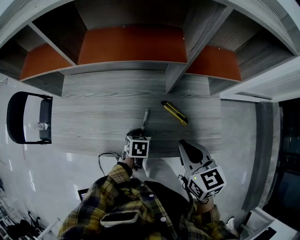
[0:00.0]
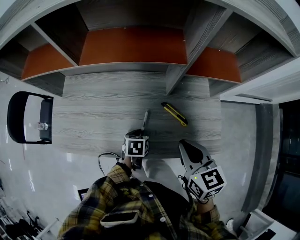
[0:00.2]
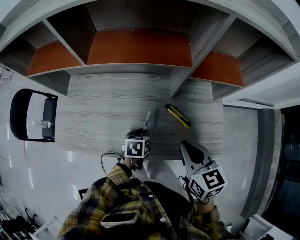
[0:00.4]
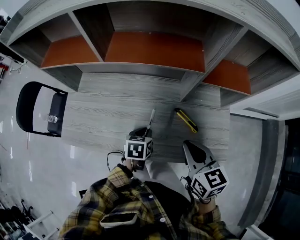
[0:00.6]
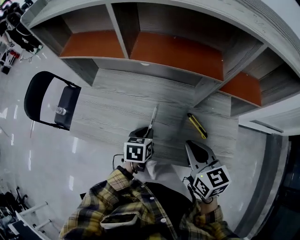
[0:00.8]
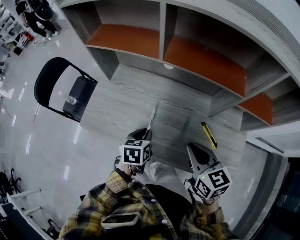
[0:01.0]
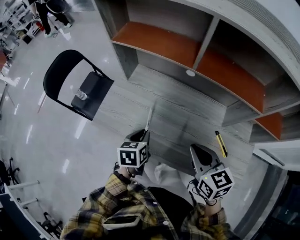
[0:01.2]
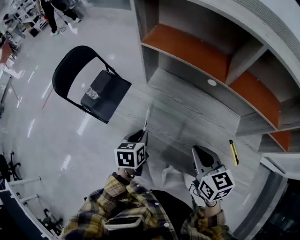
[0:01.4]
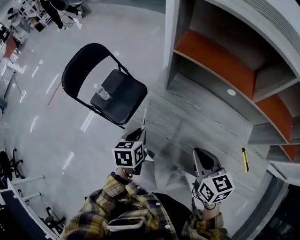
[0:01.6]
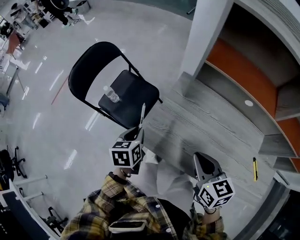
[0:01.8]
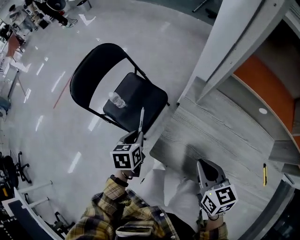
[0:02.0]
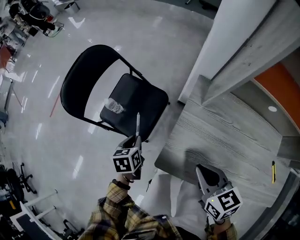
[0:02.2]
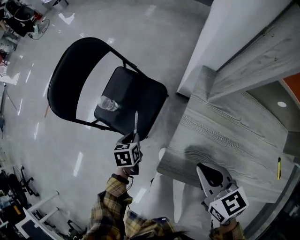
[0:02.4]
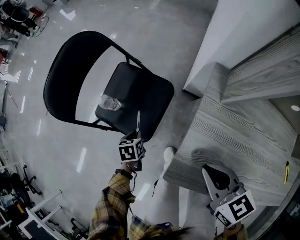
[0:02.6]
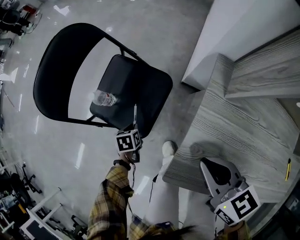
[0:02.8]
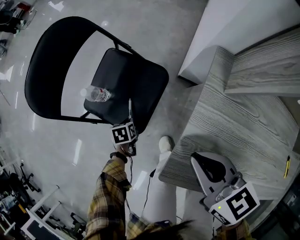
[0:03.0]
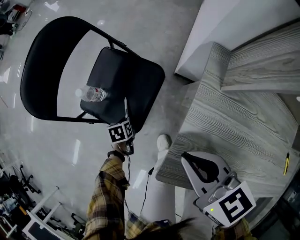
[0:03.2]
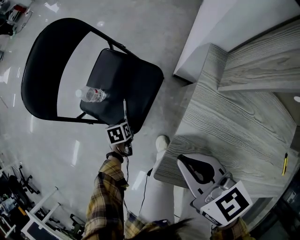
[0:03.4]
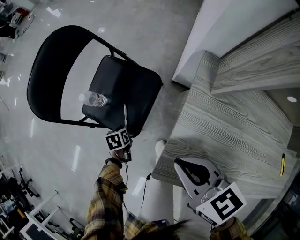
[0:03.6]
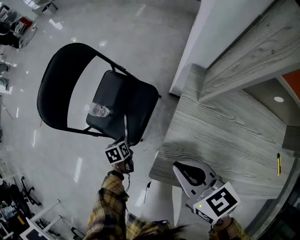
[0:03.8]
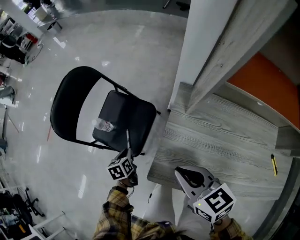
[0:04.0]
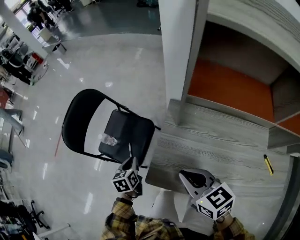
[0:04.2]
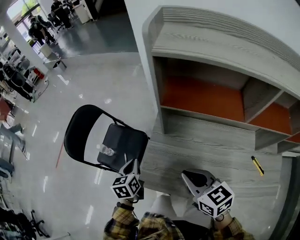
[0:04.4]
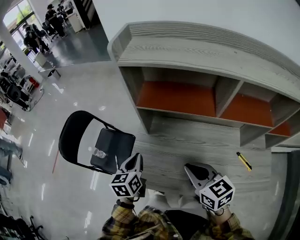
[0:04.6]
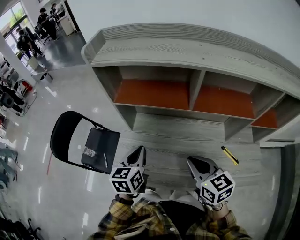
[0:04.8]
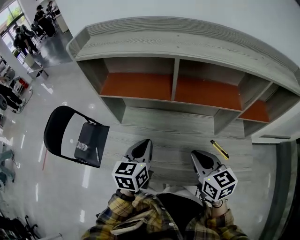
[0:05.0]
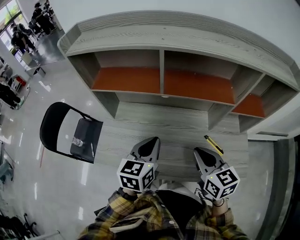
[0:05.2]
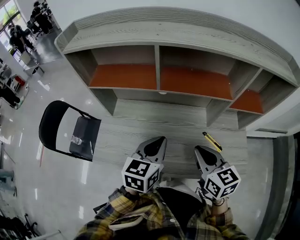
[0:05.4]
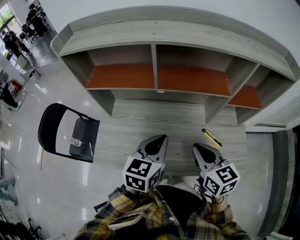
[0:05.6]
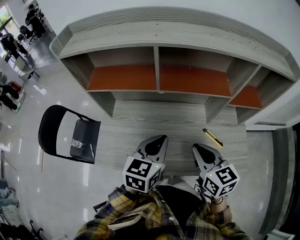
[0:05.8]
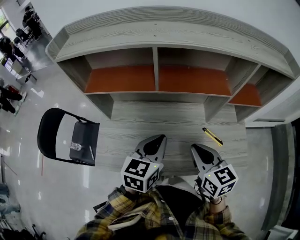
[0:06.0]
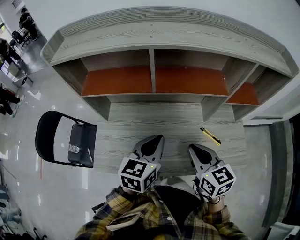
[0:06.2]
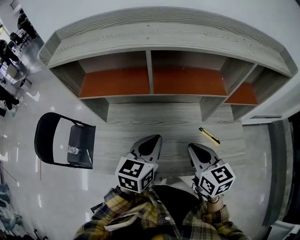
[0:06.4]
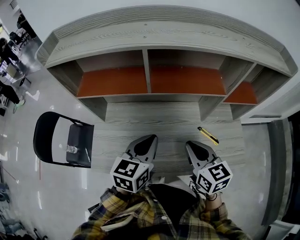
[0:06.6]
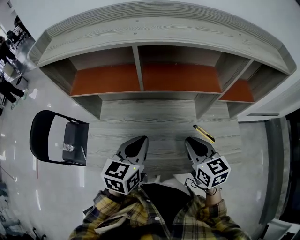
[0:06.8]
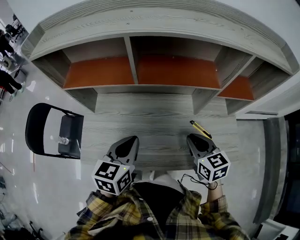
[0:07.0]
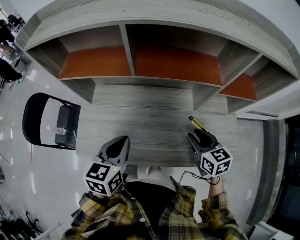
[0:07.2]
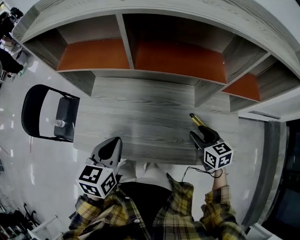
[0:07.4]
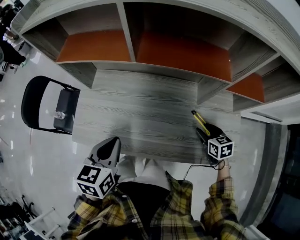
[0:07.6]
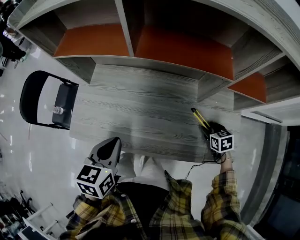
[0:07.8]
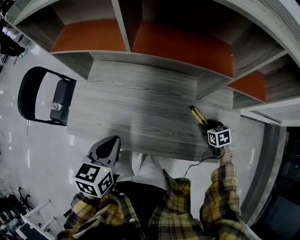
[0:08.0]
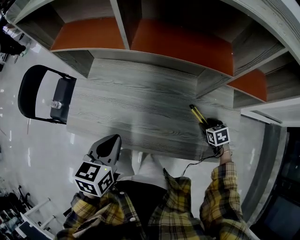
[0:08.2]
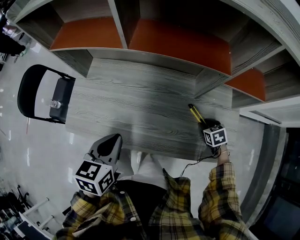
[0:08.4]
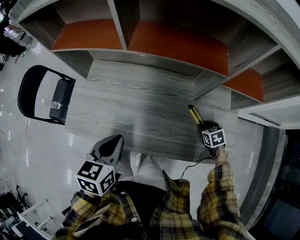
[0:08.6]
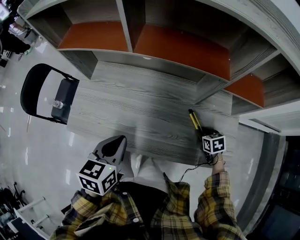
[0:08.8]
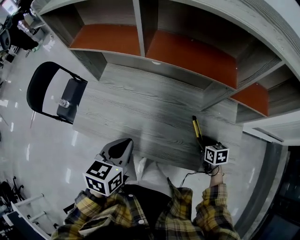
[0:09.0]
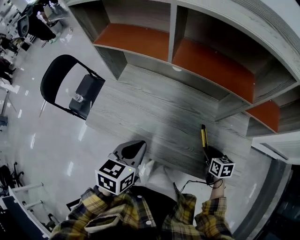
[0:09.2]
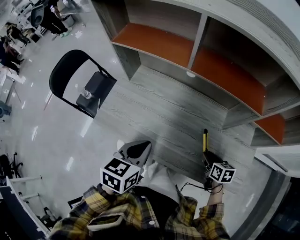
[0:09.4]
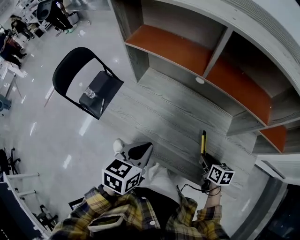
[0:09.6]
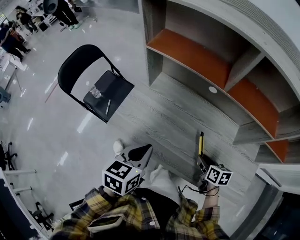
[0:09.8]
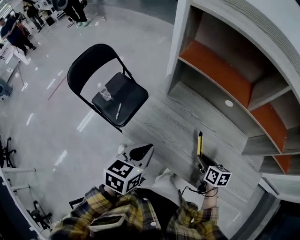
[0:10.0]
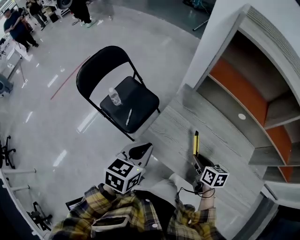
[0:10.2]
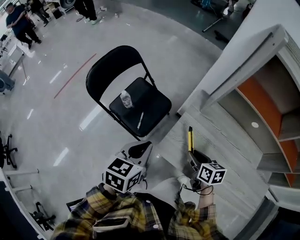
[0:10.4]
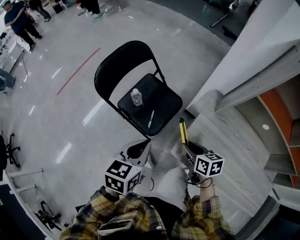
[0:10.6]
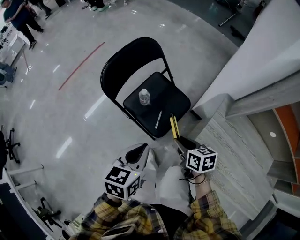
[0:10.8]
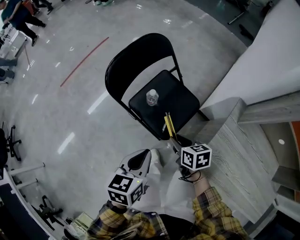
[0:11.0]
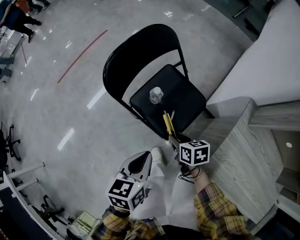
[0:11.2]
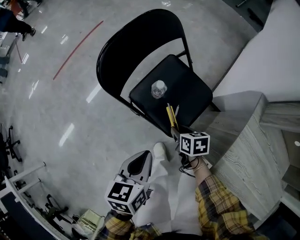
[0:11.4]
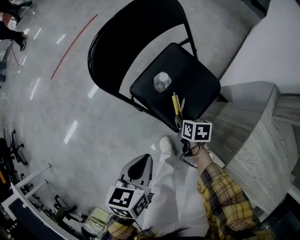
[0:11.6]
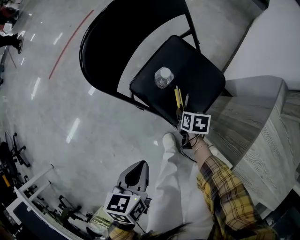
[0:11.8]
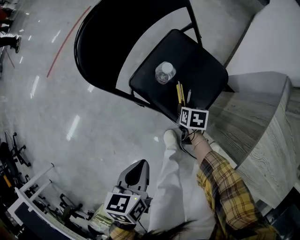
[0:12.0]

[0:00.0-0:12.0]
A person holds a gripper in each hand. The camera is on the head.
0:00.0 to 0:01.6: The right gripper ends up about 40 cm from where it was, and rotates some 30 degrees. Meanwhile the left gripper ends up roughly 50 cm from where it was, and changes its angle by approximately 40 degrees.
0:01.6 to 0:03.0: The left gripper moves downward, to the left and forward, roughly 50 cm, and turns by about 30 degrees, while the right gripper moves forward, to the left and downward, about 35 cm.
0:03.0 to 0:04.4: The left gripper shifts about 50 cm upward and to the right, and tilts its fingers roughly 30 degrees upward, while the right gripper heads upward, backward and to the right, covering about 25 cm.
0:04.4 to 0:06.0: The left gripper shifts by about 50 cm, and turns by some 40 degrees; the right gripper changes place by approximately 30 cm, and changes its angle by approximately 30 degrees.
0:06.0 to 0:07.6: The left gripper goes roughly 10 cm downward, backward and to the left, and changes its angle by approximately 20 degrees; the right gripper goes roughly 30 cm downward and to the right, rotates roughly 30 degrees, and opens up.
0:07.6 to 0:09.0: The left gripper is displaced to the right by roughly 5 cm. Meanwhile the right gripper goes approximately 5 cm downward.
0:09.0 to 0:10.4: The two grippers travel together, to the left, some 50 cm.
0:10.4 to 0:12.0: The right gripper shifts some 50 cm downward, to the left and forward, and rotates some 20 degrees, while the left gripper heads to the left and downward, covering about 35 cm, and rotates approximately 30 degrees.

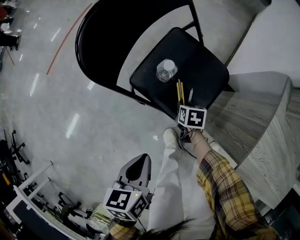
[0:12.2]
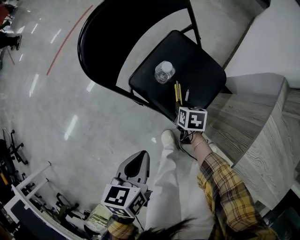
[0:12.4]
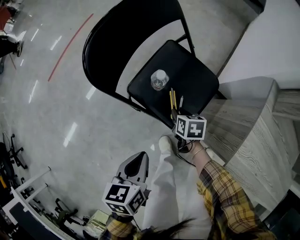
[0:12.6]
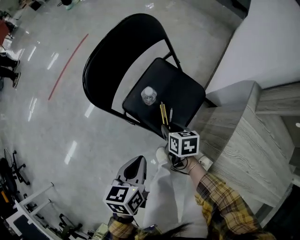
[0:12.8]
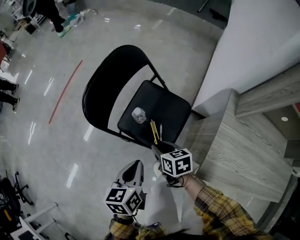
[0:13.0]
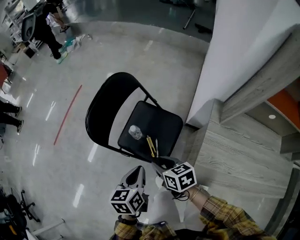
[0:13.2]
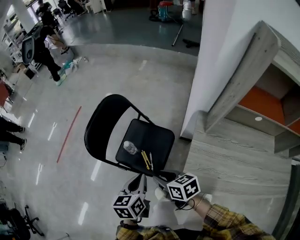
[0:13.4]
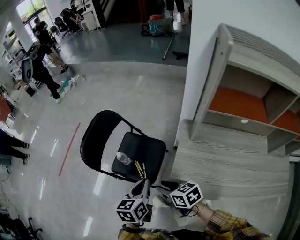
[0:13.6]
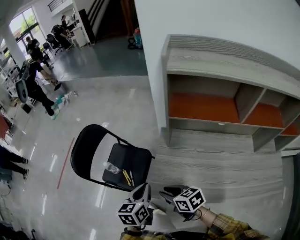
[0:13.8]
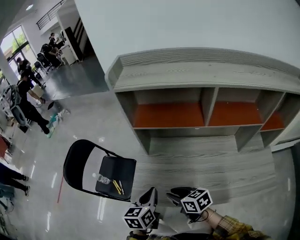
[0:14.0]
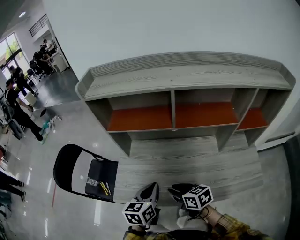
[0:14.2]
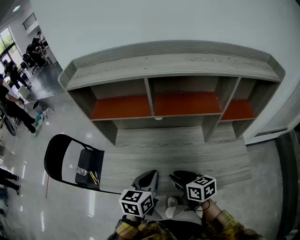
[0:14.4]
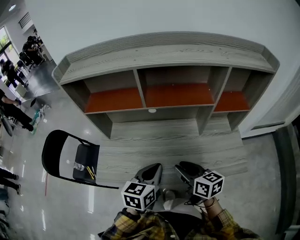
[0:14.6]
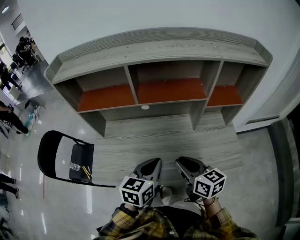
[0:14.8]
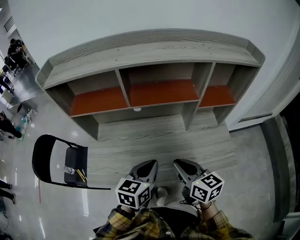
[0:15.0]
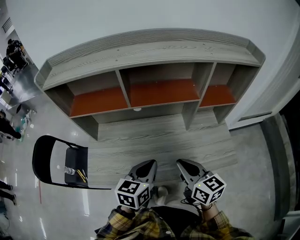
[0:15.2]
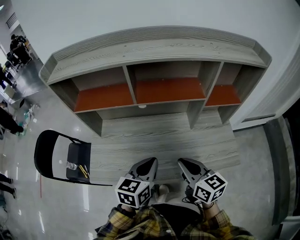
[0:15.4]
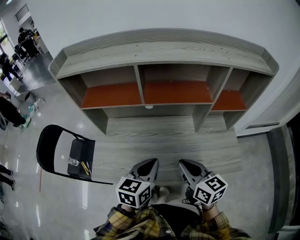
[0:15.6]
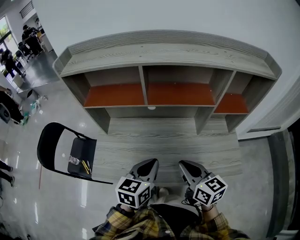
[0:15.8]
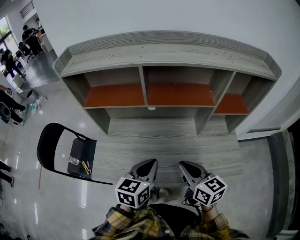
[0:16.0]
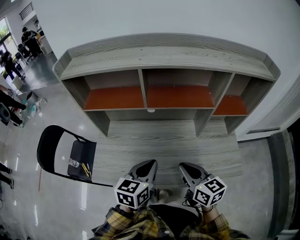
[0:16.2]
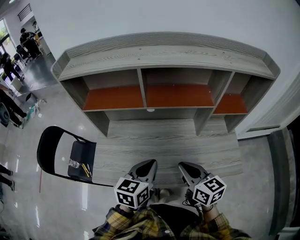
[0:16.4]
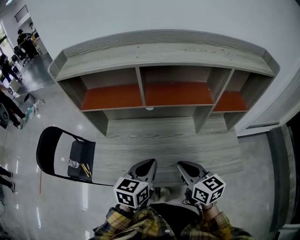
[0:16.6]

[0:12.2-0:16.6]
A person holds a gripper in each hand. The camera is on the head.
0:12.2 to 0:13.6: The right gripper moves upward, roughly 40 cm, and tilts its fingers about 30 degrees upward, while the left gripper is displaced upward and to the right by about 35 cm, and changes its angle by some 30 degrees.
0:13.6 to 0:15.2: The two grippers travel together, some 60 cm. The right gripper turns by some 50 degrees, and closes, while the left gripper changes its angle by roughly 40 degrees.
0:15.2 to 0:16.6: The grippers make only small movements.

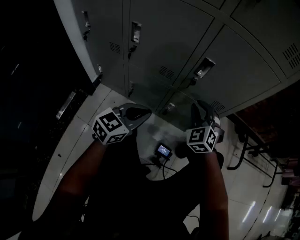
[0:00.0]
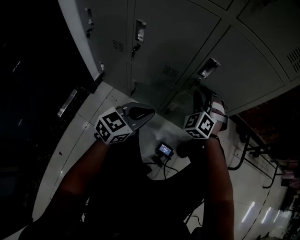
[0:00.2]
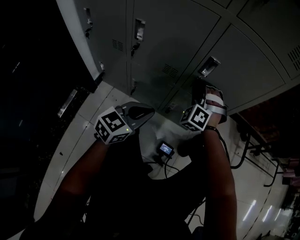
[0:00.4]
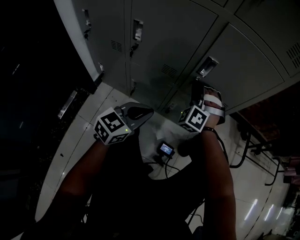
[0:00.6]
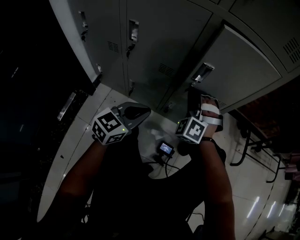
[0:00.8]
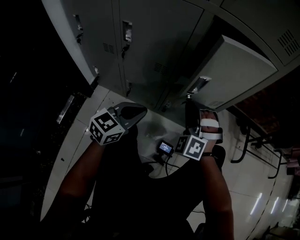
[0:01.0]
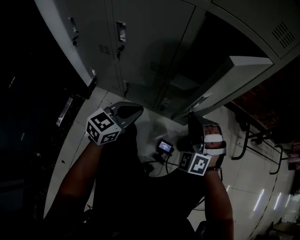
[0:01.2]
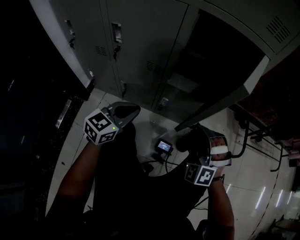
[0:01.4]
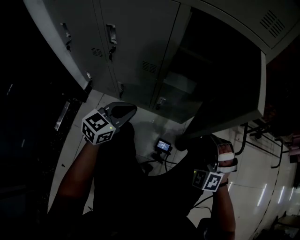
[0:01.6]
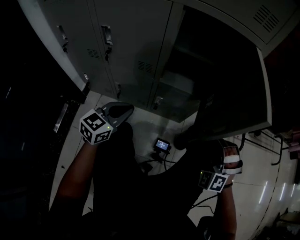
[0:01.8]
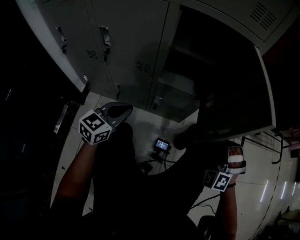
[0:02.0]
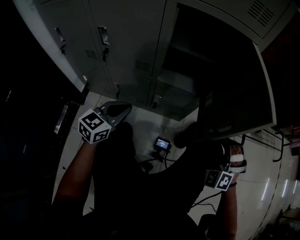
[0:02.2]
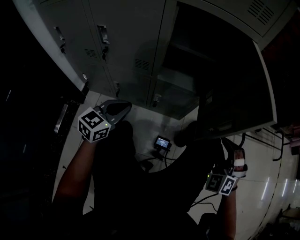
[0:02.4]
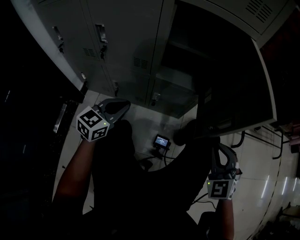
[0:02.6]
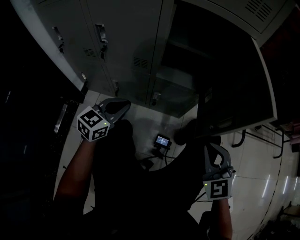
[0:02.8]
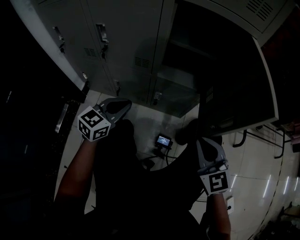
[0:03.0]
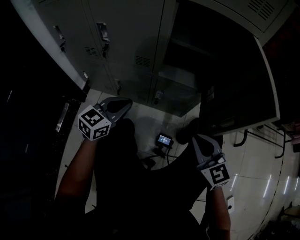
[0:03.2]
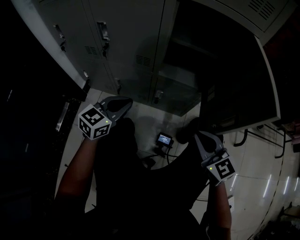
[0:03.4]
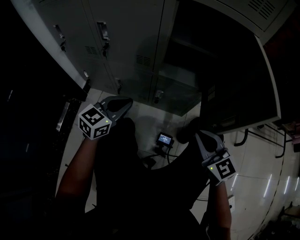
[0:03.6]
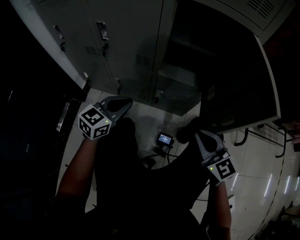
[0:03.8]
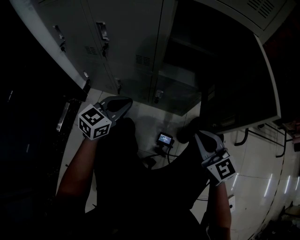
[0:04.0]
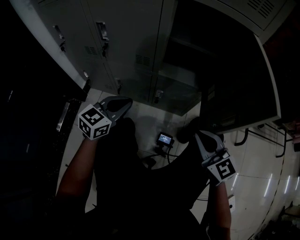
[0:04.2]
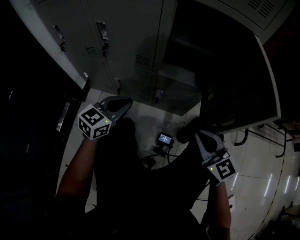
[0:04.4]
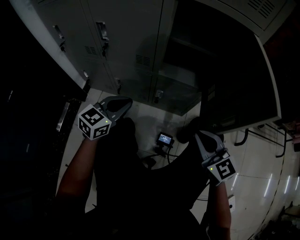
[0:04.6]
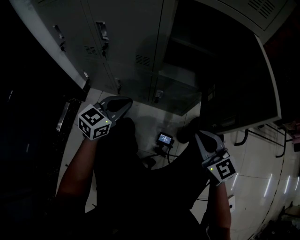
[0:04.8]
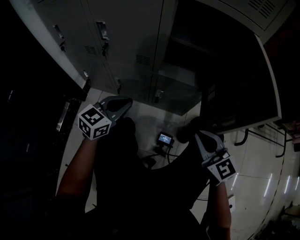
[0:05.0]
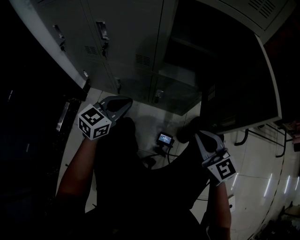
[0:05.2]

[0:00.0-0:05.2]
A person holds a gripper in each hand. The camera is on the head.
0:00.0 to 0:01.8: The right gripper is displaced to the right and backward by about 25 cm, and turns by about 30 degrees.
0:01.8 to 0:03.4: The right gripper heads to the left, covering some 5 cm, and rotates around the line of its fingers by about 70 degrees, clockwise from behind.
0:03.4 to 0:05.2: Both grippers stay about where they are.

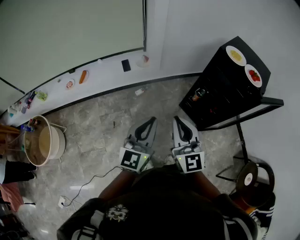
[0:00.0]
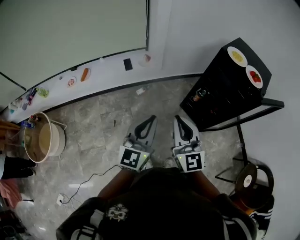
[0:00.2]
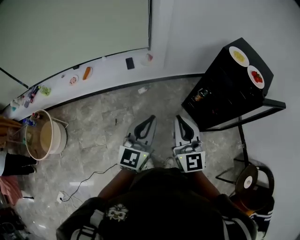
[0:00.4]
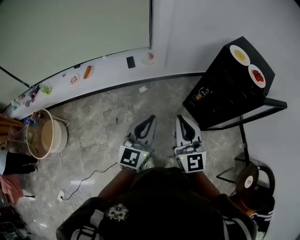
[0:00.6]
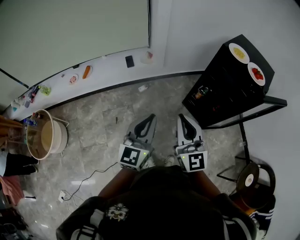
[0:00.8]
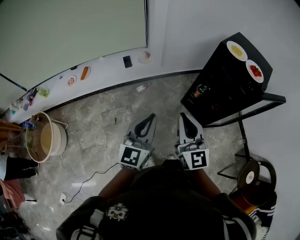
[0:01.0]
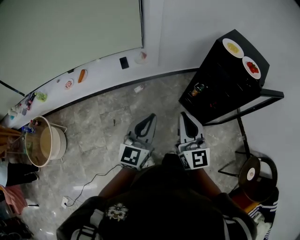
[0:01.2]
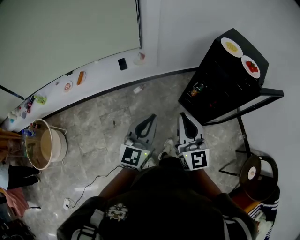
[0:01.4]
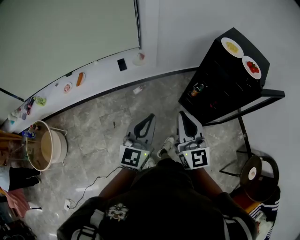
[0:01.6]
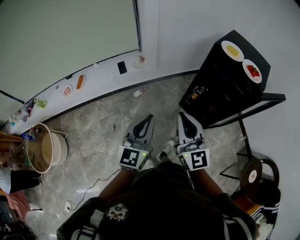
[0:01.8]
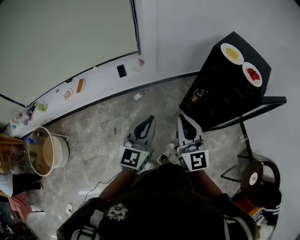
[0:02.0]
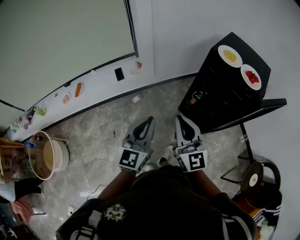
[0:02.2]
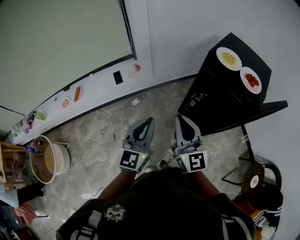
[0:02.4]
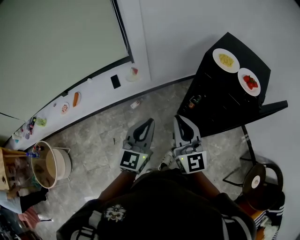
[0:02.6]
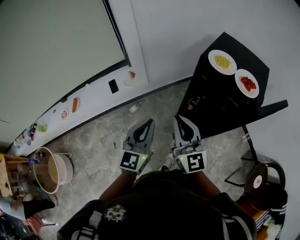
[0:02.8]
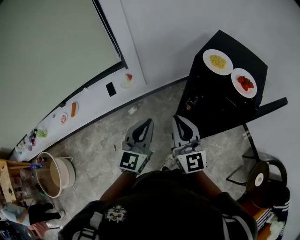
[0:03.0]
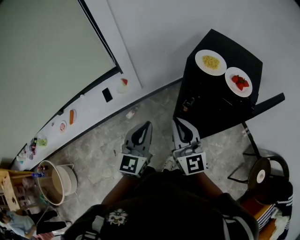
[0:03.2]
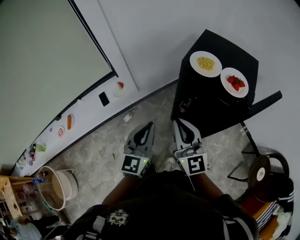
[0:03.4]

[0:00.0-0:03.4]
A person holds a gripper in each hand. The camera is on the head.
0:00.0 to 0:01.6: There are only small adjustments of the grippers.
0:01.6 to 0:03.4: Both grippers move forward and to the right, approximately 25 cm.
